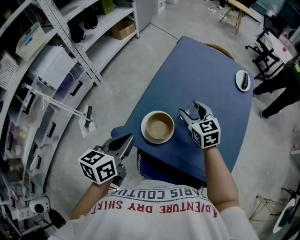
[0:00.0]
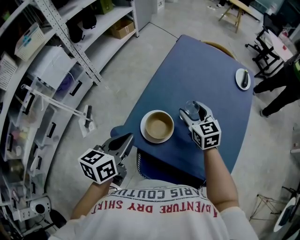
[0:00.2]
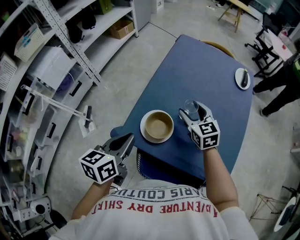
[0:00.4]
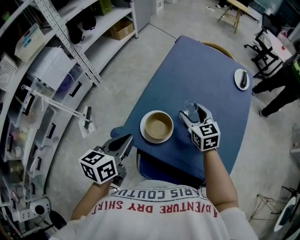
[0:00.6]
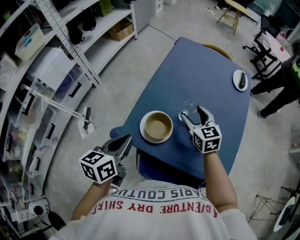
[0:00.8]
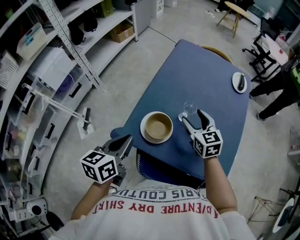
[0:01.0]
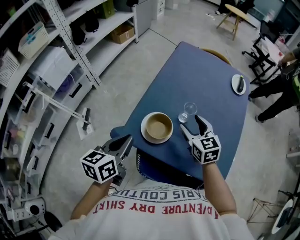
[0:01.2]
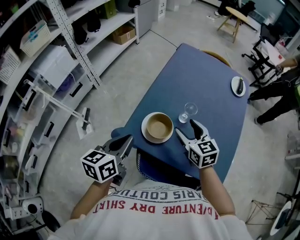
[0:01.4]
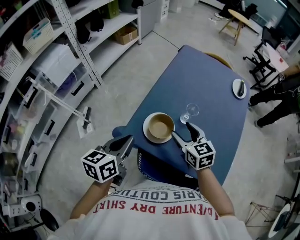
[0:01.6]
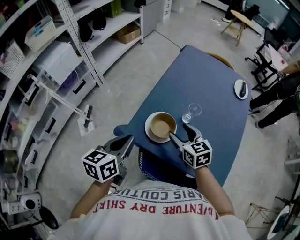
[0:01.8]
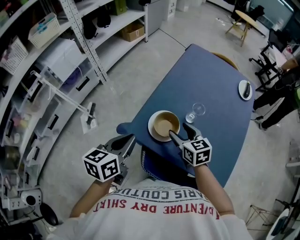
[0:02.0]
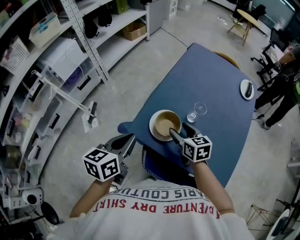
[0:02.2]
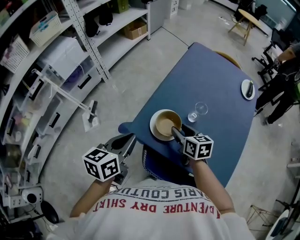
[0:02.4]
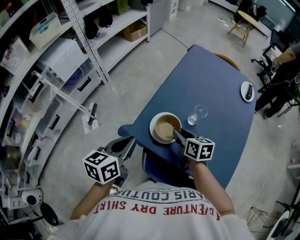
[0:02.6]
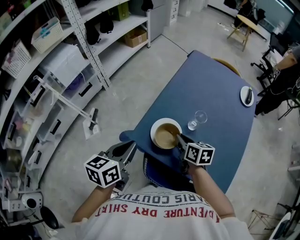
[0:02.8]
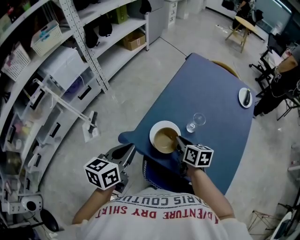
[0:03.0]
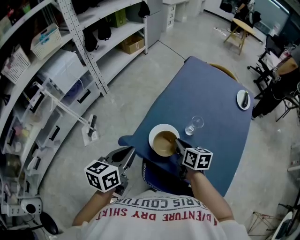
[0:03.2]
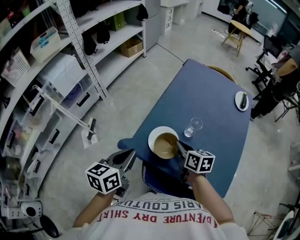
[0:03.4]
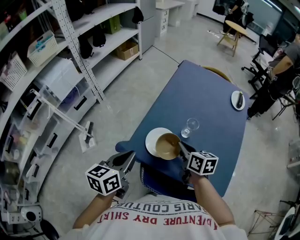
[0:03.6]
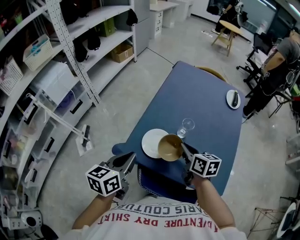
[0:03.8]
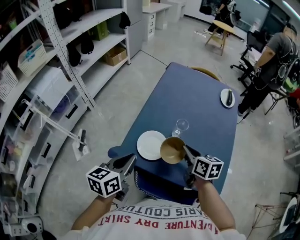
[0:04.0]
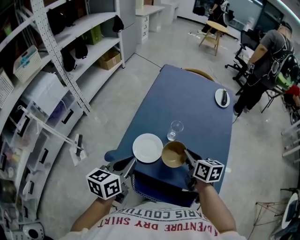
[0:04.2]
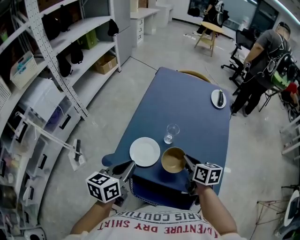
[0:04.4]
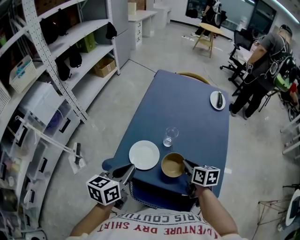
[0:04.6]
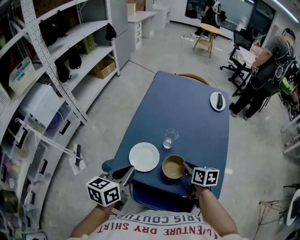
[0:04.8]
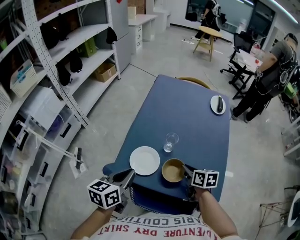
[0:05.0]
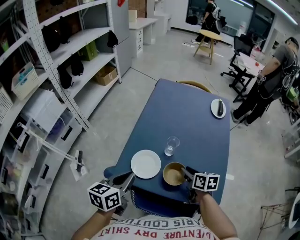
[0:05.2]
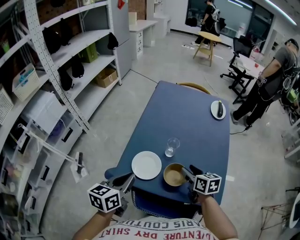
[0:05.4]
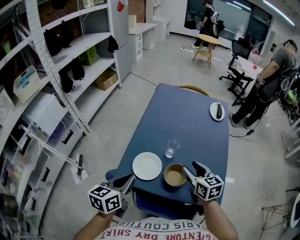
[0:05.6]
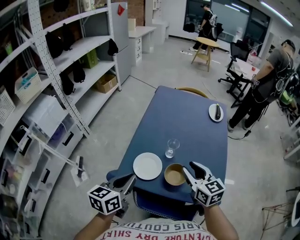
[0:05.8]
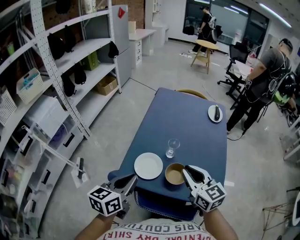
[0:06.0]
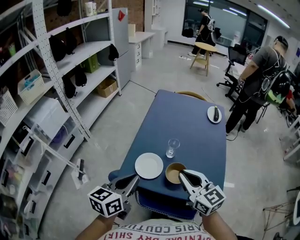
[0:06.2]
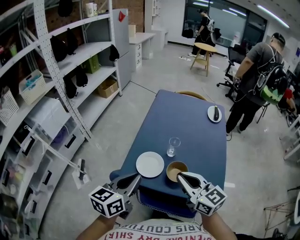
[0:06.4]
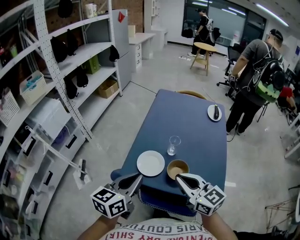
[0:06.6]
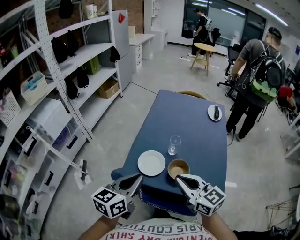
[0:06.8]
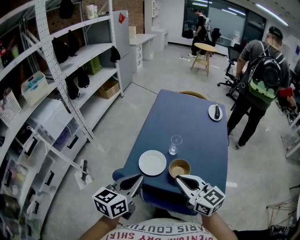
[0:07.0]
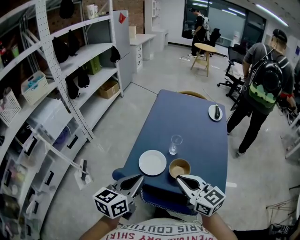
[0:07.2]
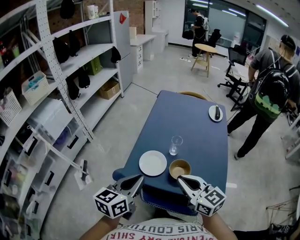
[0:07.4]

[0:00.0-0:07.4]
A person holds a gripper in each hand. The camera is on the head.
0:00.0 to 0:01.4: The right gripper moves backward, roughly 10 cm.
0:01.4 to 0:03.0: The right gripper is displaced downward by about 5 cm, rotates roughly 30 degrees, and closes.
0:03.0 to 0:04.4: The right gripper is displaced to the right by some 15 cm. The left gripper moves to the right, approximately 5 cm.
0:04.4 to 0:06.0: The right gripper moves upward, about 15 cm, changes its angle by some 30 degrees, and opens and closes again.
0:06.0 to 0:07.4: The right gripper shifts about 5 cm backward.

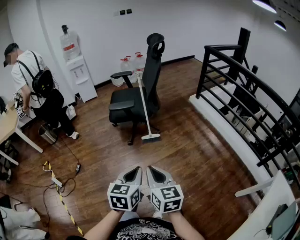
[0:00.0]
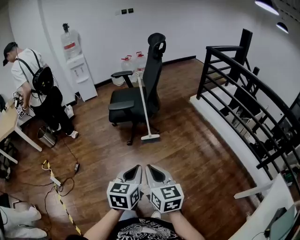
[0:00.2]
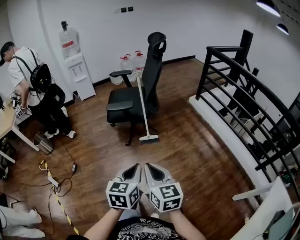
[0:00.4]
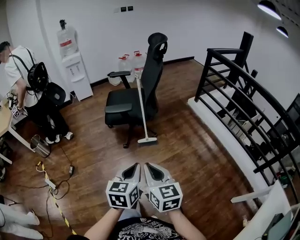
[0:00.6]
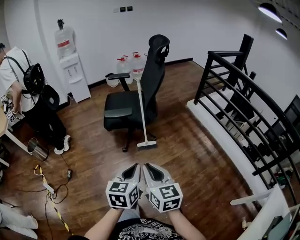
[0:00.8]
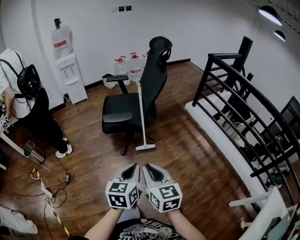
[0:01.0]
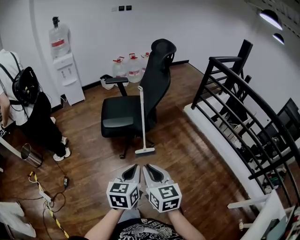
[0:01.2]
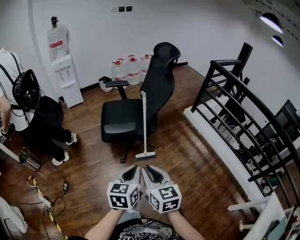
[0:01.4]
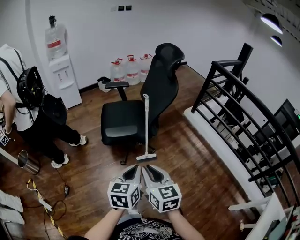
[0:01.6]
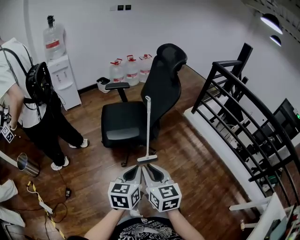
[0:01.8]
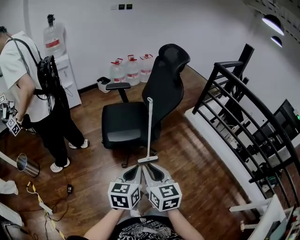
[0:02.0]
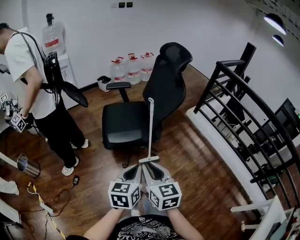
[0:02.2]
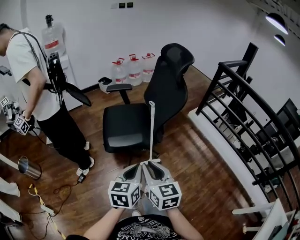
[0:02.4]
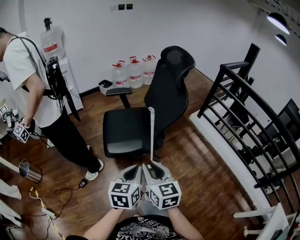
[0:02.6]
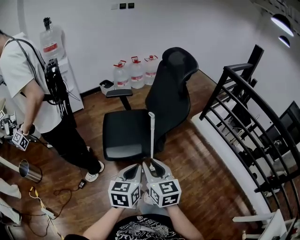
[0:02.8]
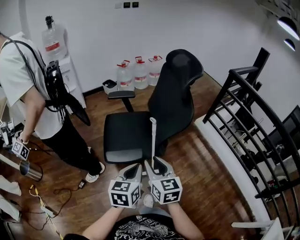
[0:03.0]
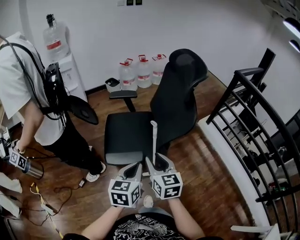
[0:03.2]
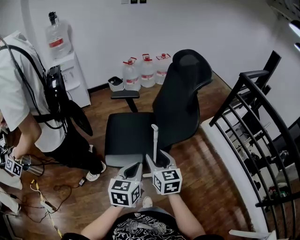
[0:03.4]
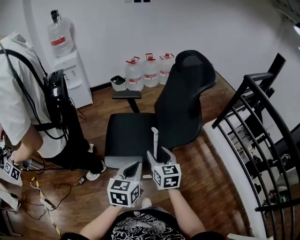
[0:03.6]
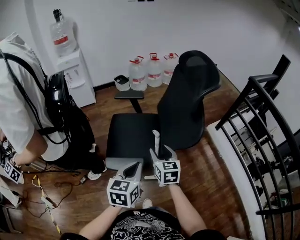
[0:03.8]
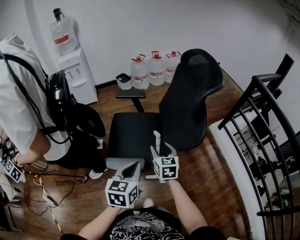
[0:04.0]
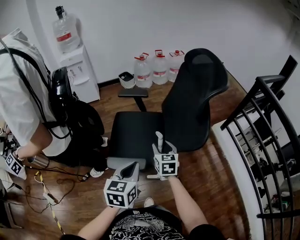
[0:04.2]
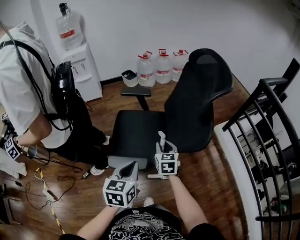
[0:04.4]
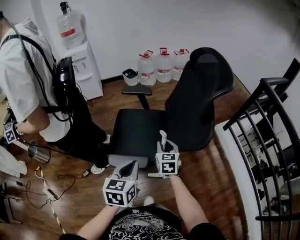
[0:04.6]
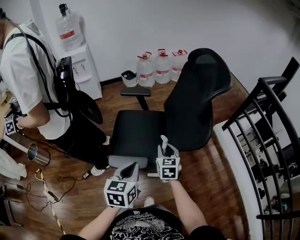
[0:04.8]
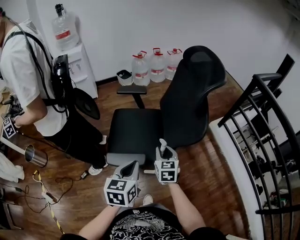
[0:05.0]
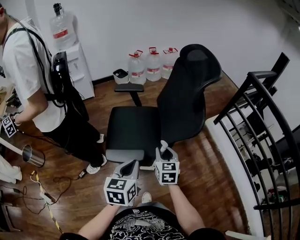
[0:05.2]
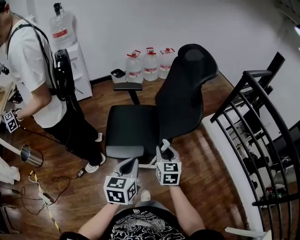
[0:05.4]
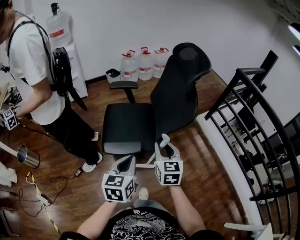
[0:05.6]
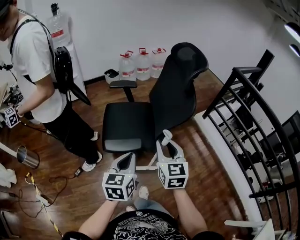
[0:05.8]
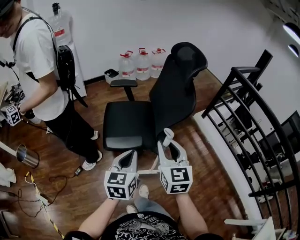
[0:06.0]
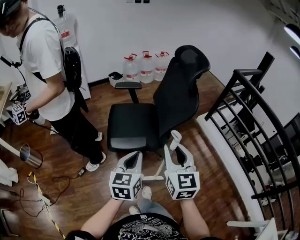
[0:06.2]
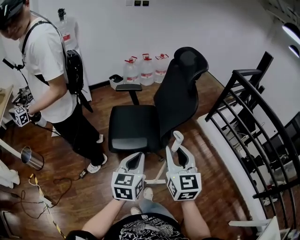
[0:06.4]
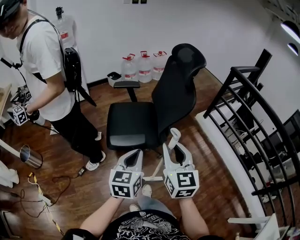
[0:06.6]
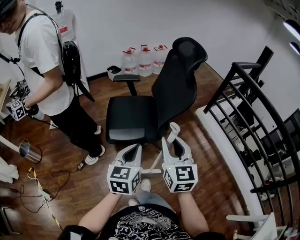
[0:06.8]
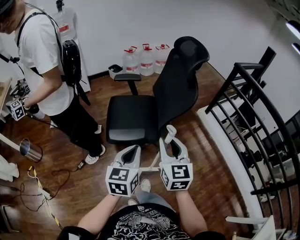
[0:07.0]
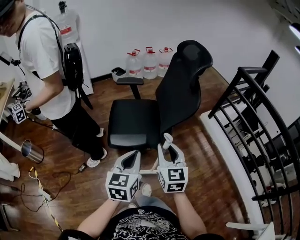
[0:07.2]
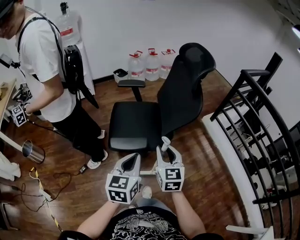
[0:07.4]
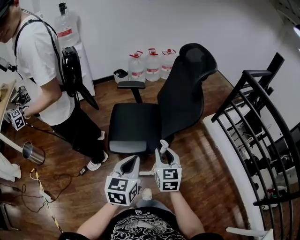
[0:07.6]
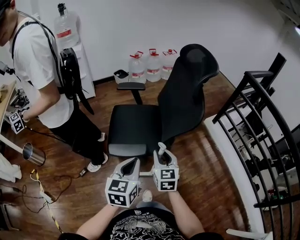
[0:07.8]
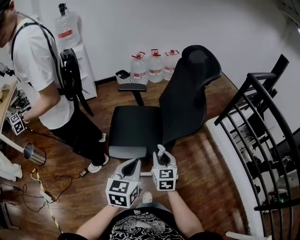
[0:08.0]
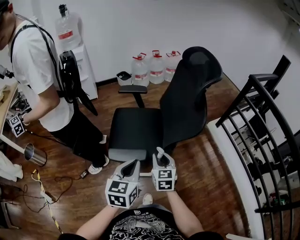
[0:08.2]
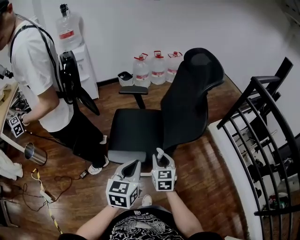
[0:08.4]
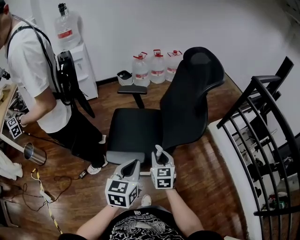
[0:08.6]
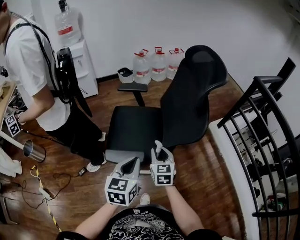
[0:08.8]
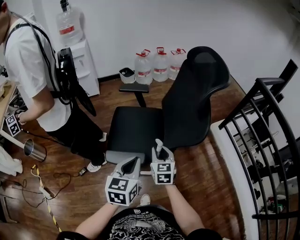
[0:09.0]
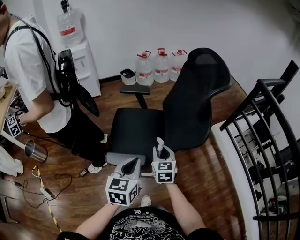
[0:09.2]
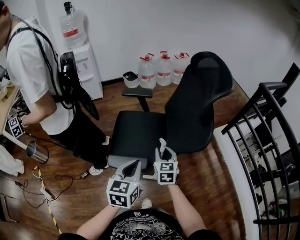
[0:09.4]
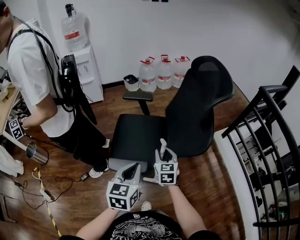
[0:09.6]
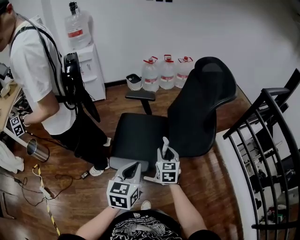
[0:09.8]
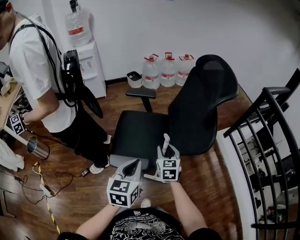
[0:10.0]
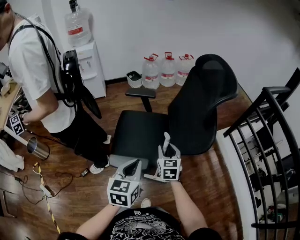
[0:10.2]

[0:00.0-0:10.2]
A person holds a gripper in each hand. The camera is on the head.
0:00.0 to 0:01.4: The two grippers go approximately 25 cm forward.
0:01.4 to 0:03.0: The grippers both shift forward by roughly 25 cm.
0:03.0 to 0:04.4: The right gripper shifts approximately 25 cm forward and downward, and opens and closes again. The left gripper travels forward by approximately 10 cm.
0:04.4 to 0:05.8: The left gripper goes roughly 10 cm backward. Meanwhile the right gripper heads upward and backward, covering roughly 25 cm.
0:07.2 to 0:08.8: The right gripper moves forward and downward, some 20 cm; the left gripper goes about 10 cm forward.
0:08.8 to 0:10.2: The right gripper is displaced forward by about 5 cm.

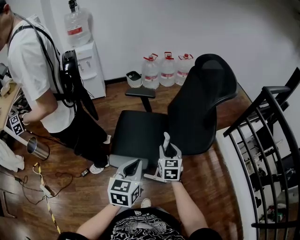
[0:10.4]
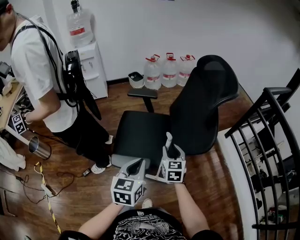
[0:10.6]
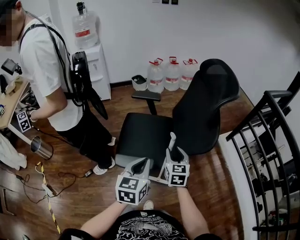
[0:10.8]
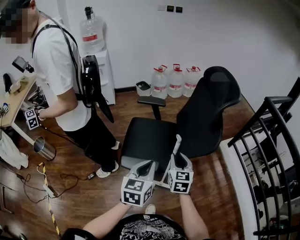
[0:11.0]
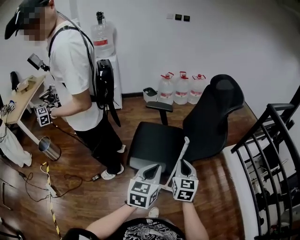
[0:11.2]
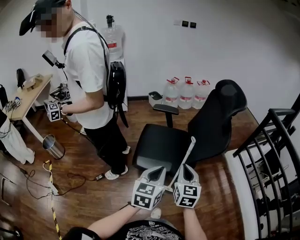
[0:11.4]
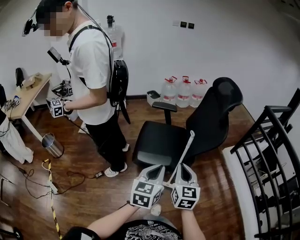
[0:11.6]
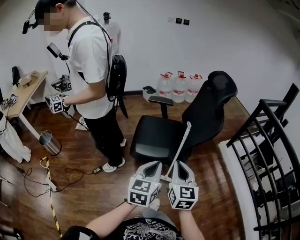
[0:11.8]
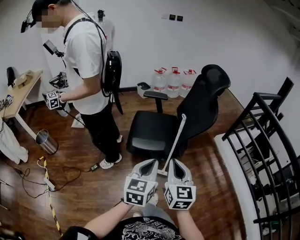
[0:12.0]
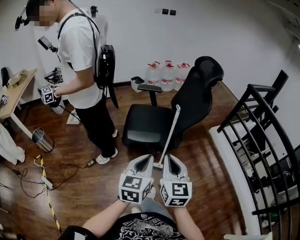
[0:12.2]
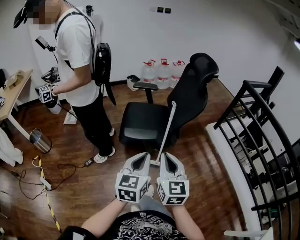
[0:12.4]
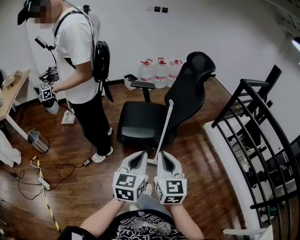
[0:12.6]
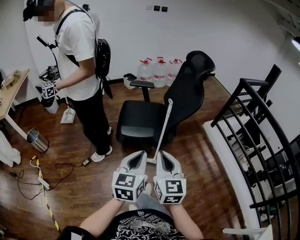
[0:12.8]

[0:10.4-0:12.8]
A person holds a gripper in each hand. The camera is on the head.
0:10.4 to 0:11.6: The right gripper travels backward and upward by roughly 25 cm, and closes its fingers. The left gripper goes roughly 15 cm backward and upward.
0:11.6 to 0:12.8: Both grippers travel together backward, some 15 cm.

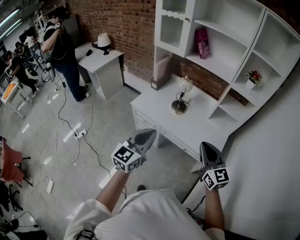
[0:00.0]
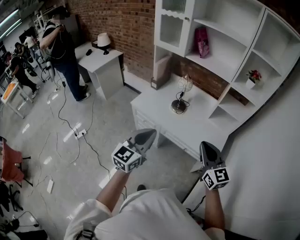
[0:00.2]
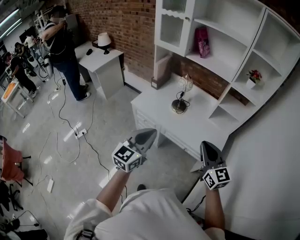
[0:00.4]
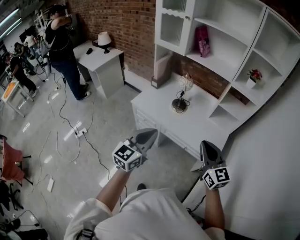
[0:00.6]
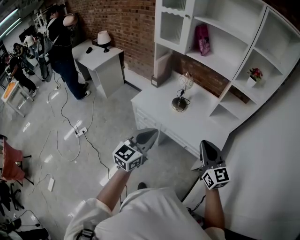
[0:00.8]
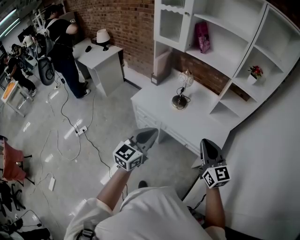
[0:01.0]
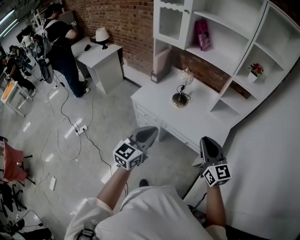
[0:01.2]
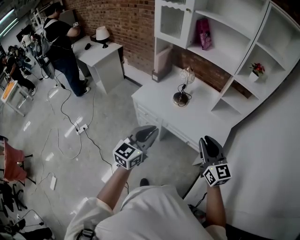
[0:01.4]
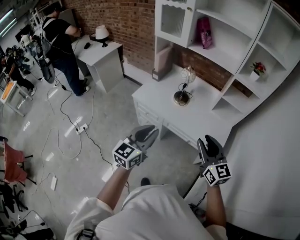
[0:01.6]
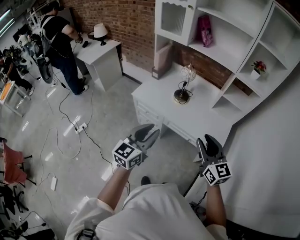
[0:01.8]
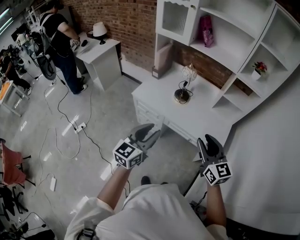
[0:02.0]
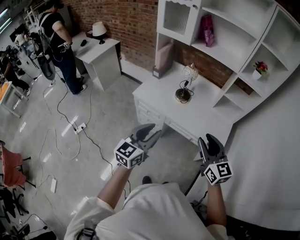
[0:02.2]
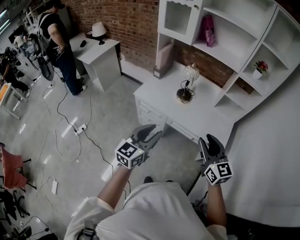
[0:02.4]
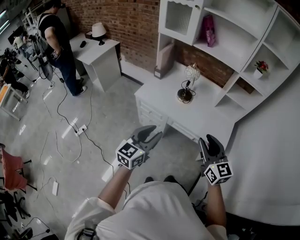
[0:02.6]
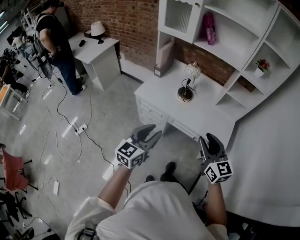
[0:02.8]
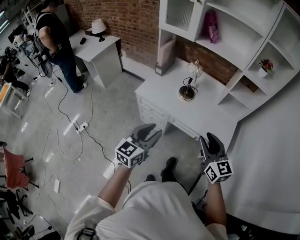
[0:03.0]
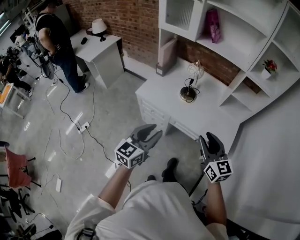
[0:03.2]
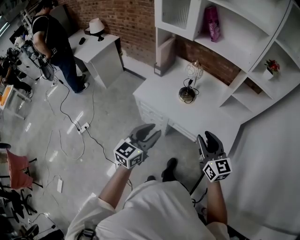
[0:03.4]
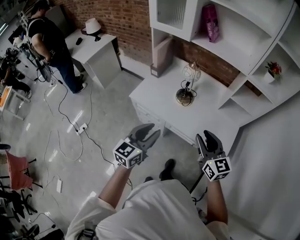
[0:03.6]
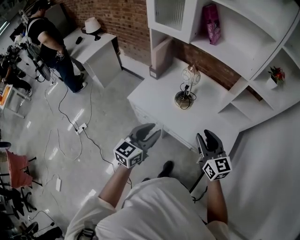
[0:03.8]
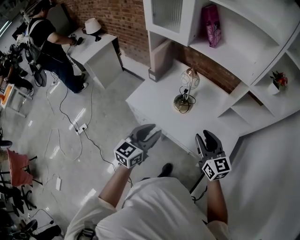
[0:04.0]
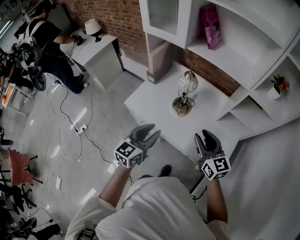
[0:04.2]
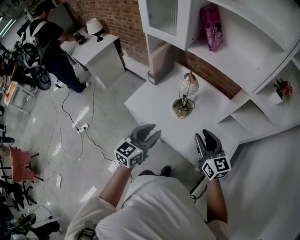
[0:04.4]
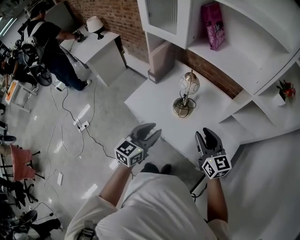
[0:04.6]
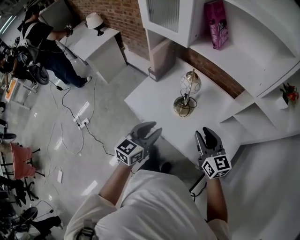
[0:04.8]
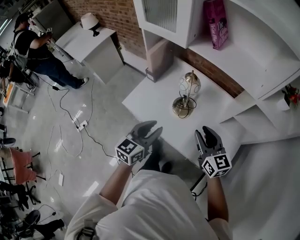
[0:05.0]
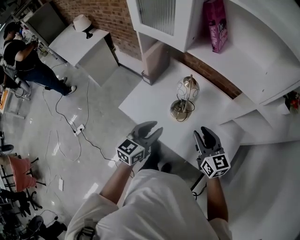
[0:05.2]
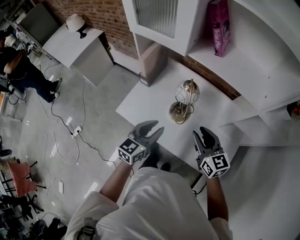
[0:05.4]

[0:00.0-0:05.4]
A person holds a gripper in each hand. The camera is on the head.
0:00.0 to 0:01.4: The grippers move only a little.
0:01.4 to 0:02.8: Both grippers move to the left, approximately 10 cm.
0:02.8 to 0:04.0: Both grippers travel together forward, roughly 25 cm.
0:04.0 to 0:05.4: The grippers both shift forward by roughly 20 cm.
